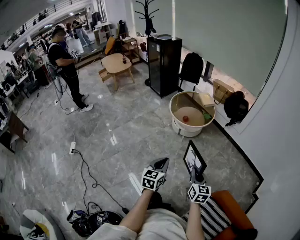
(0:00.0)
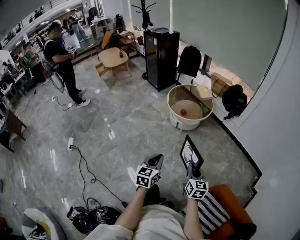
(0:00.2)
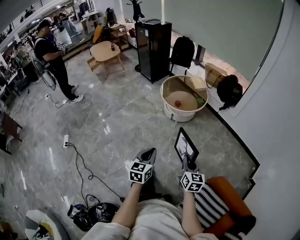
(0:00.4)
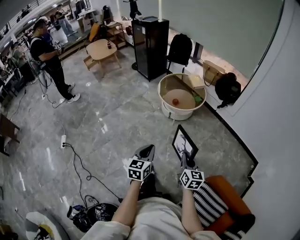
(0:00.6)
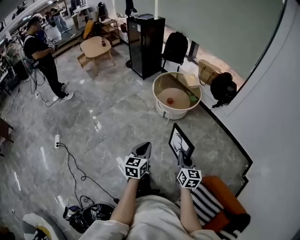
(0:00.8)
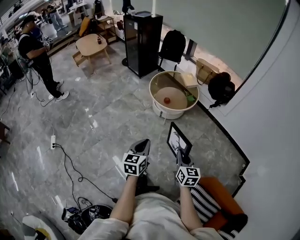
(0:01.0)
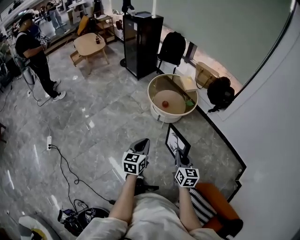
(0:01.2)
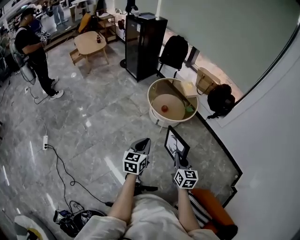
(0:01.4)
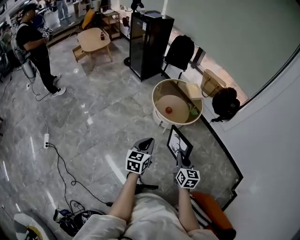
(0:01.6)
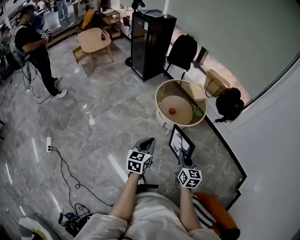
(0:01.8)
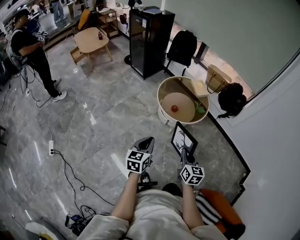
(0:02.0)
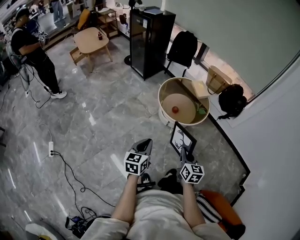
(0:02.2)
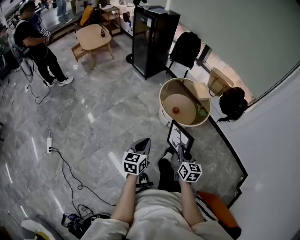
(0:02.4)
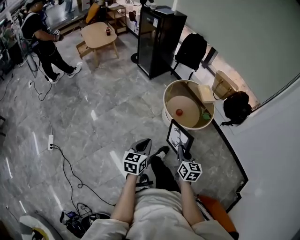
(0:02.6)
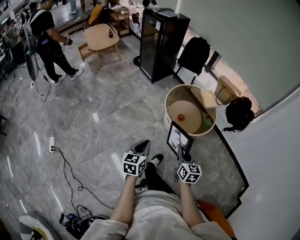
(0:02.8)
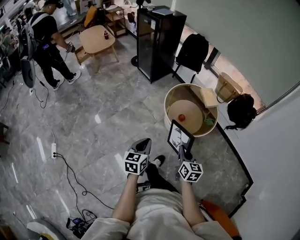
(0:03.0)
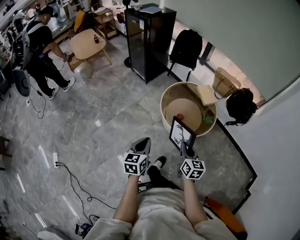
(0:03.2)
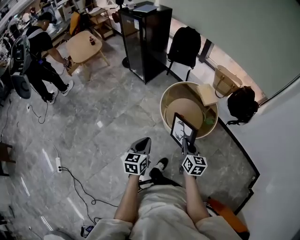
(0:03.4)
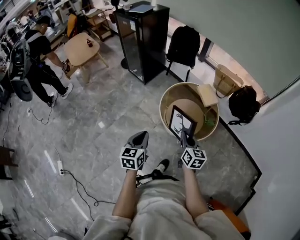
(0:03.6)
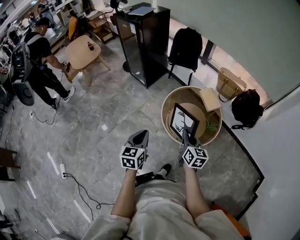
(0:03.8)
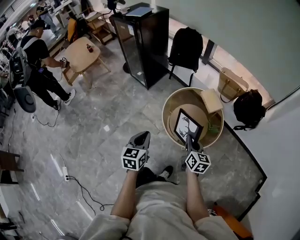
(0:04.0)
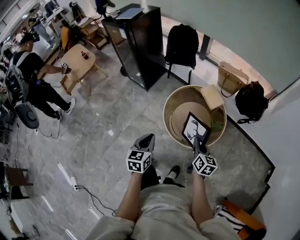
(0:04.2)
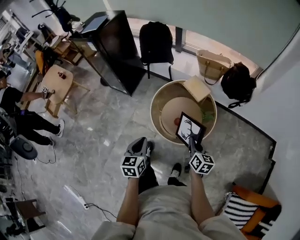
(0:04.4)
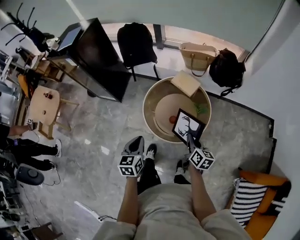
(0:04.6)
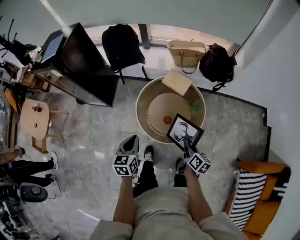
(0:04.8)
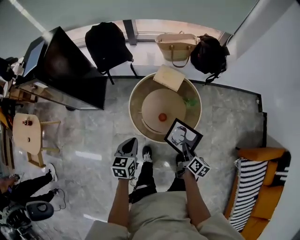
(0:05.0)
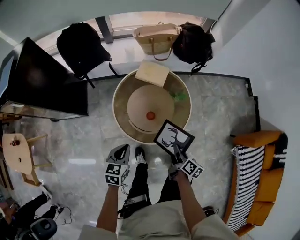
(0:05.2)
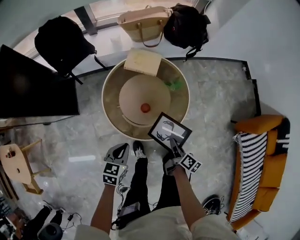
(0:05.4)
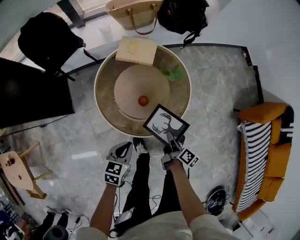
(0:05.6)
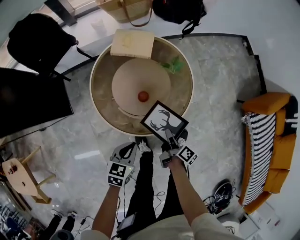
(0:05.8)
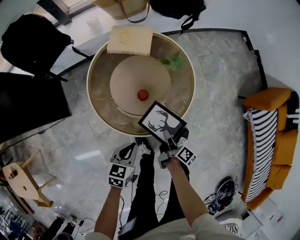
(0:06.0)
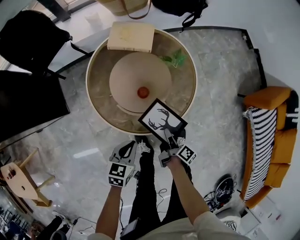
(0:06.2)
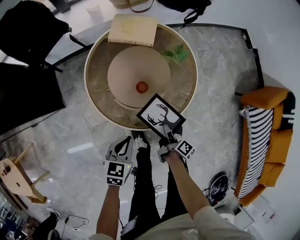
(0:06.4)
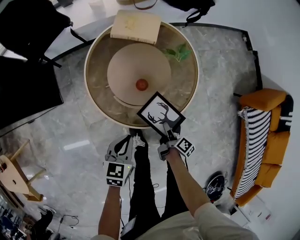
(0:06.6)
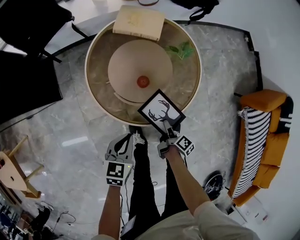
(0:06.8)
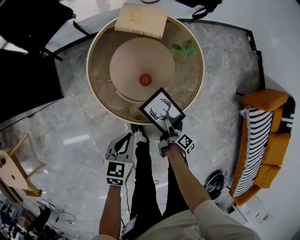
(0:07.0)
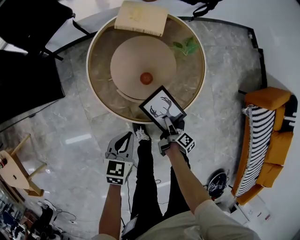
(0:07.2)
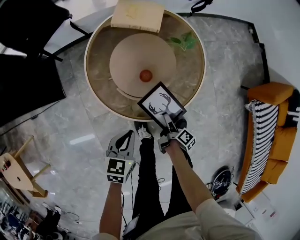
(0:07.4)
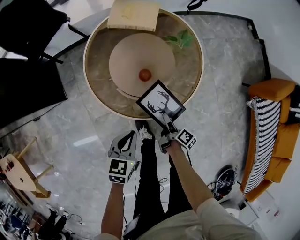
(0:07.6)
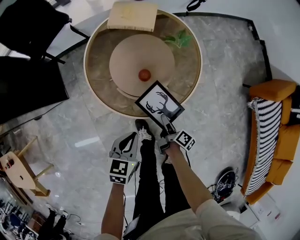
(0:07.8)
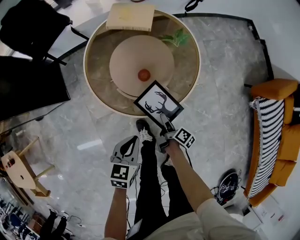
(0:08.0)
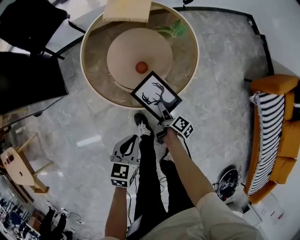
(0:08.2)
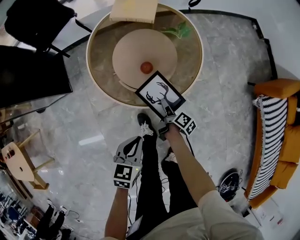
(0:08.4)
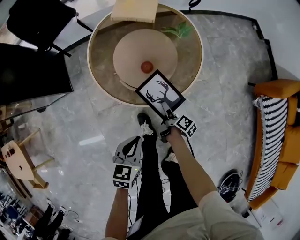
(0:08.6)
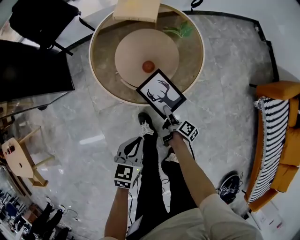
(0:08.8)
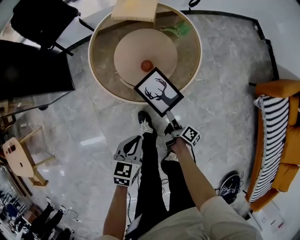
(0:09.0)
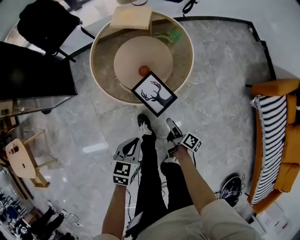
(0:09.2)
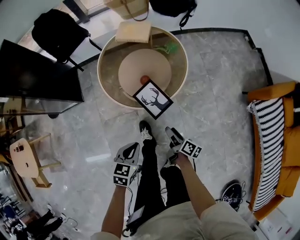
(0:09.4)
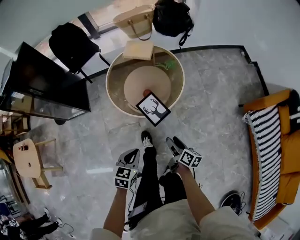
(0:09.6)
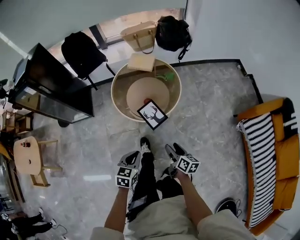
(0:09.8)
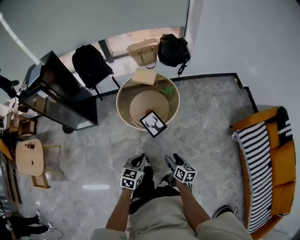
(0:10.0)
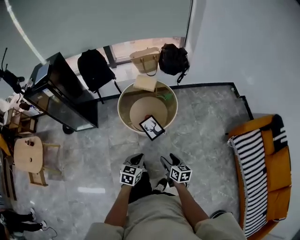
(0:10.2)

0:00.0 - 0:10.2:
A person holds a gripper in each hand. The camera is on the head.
0:00.0 - 0:01.4: The two grippers go about 20 cm forward.
0:01.4 - 0:03.0: The grippers both shift forward and to the left by about 30 cm.
0:03.0 - 0:04.4: The two grippers go roughly 30 cm forward. The right gripper changes its angle by roughly 30 degrees.
0:04.4 - 0:05.8: The grippers both shift downward by approximately 30 cm. The left gripper turns by some 70 degrees. The right gripper twists approximately 60 degrees clockwise, seen from behind.
0:05.8 - 0:07.2: The right gripper moves downward, some 10 cm, and opens its fingers, while the left gripper ends up approximately 5 cm from where it was.
0:07.2 - 0:08.8: The left gripper is displaced backward and to the right by some 15 cm.
0:08.8 - 0:10.2: Both grippers travel together upward and backward, roughly 40 cm. The right gripper rotates around the line of its fingers by about 60 degrees, counterclockwise from behind.

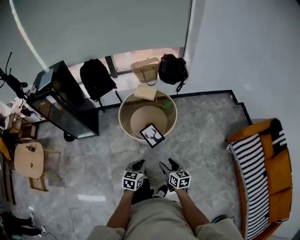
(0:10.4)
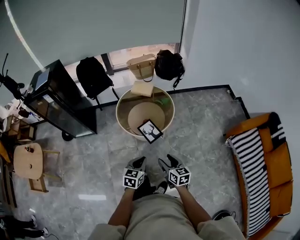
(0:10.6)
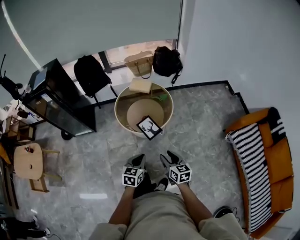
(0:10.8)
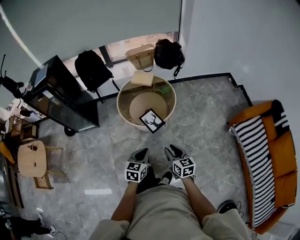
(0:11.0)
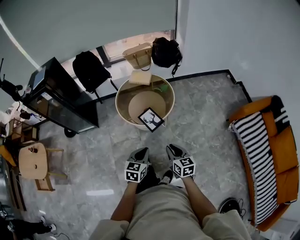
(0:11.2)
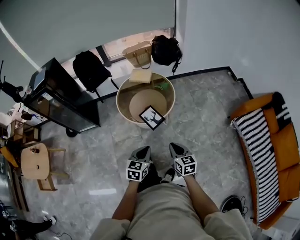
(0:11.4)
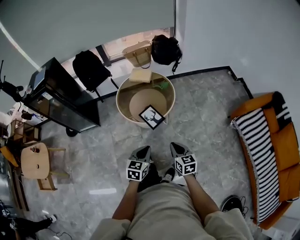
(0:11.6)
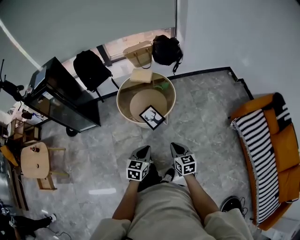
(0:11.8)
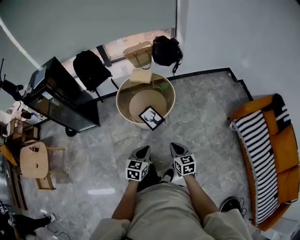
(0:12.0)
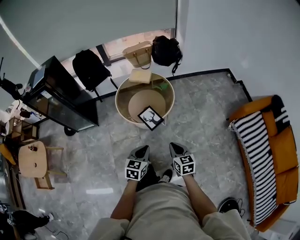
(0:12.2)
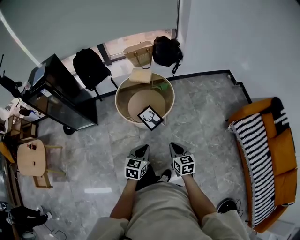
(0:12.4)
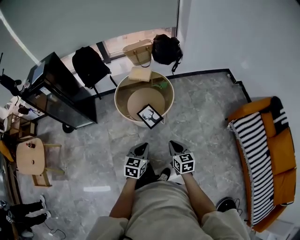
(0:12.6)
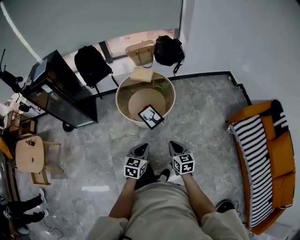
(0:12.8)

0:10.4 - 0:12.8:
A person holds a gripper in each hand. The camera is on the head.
0:10.4 - 0:11.6: The right gripper closes.
0:11.6 - 0:12.8: There are only small adjustments of the grippers.

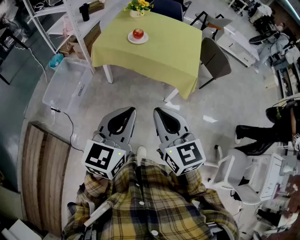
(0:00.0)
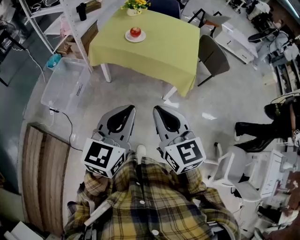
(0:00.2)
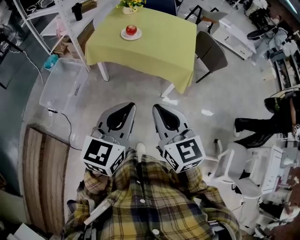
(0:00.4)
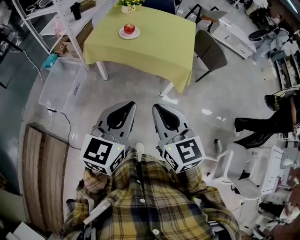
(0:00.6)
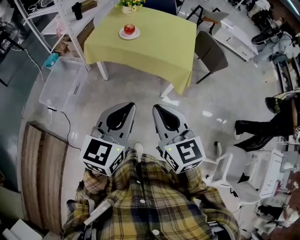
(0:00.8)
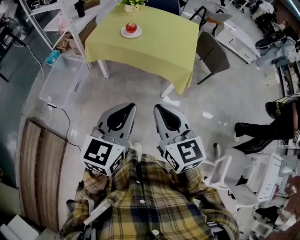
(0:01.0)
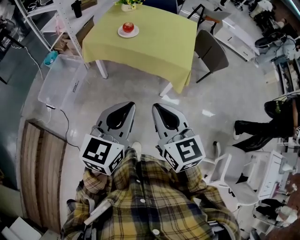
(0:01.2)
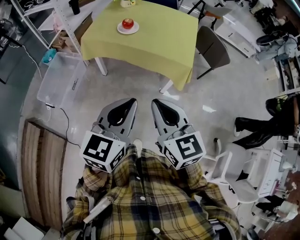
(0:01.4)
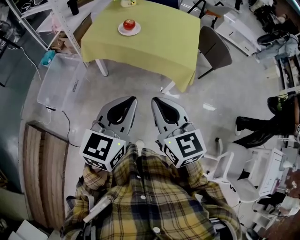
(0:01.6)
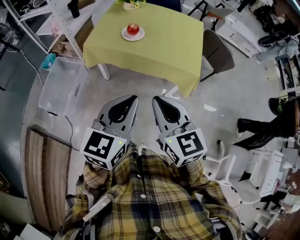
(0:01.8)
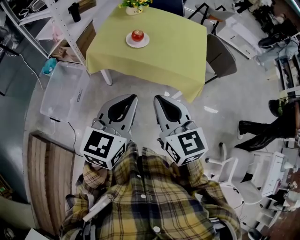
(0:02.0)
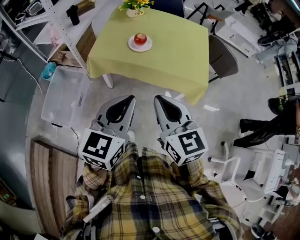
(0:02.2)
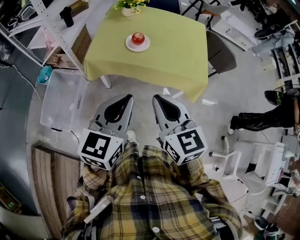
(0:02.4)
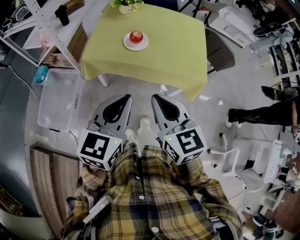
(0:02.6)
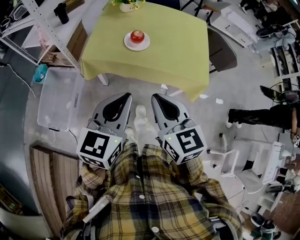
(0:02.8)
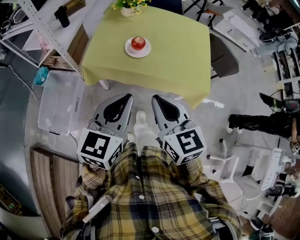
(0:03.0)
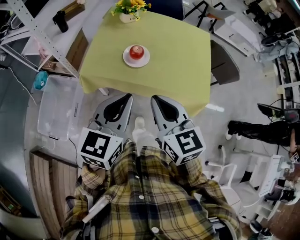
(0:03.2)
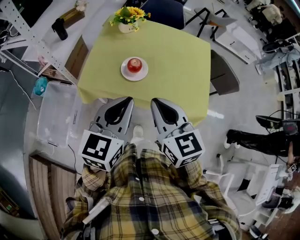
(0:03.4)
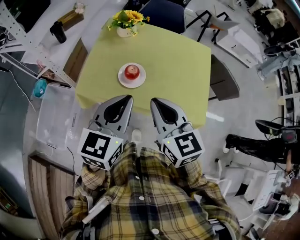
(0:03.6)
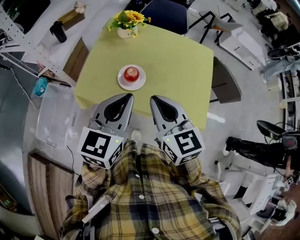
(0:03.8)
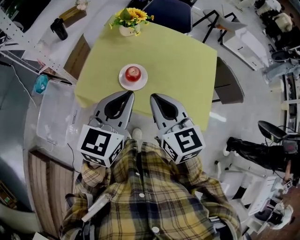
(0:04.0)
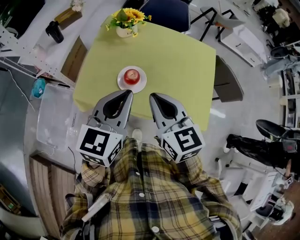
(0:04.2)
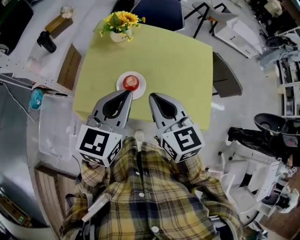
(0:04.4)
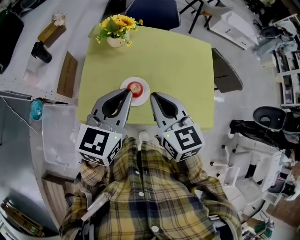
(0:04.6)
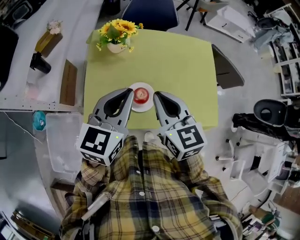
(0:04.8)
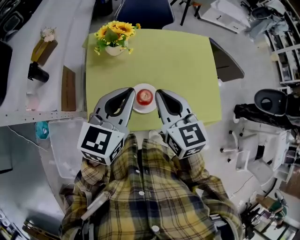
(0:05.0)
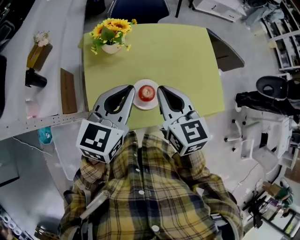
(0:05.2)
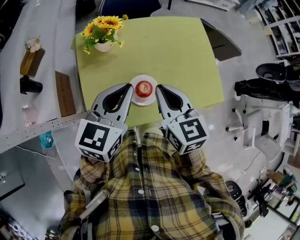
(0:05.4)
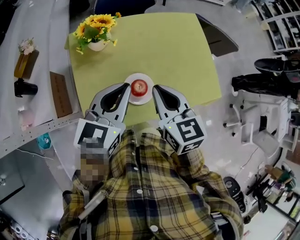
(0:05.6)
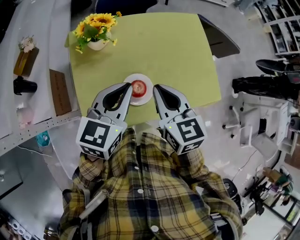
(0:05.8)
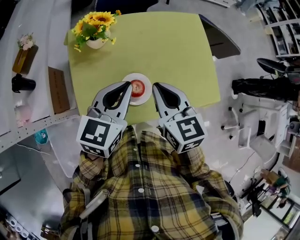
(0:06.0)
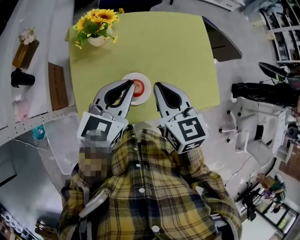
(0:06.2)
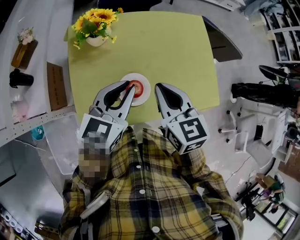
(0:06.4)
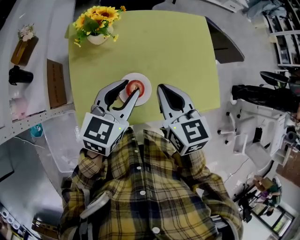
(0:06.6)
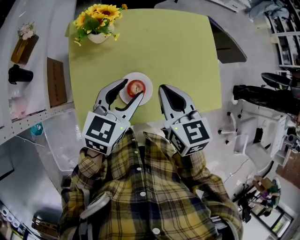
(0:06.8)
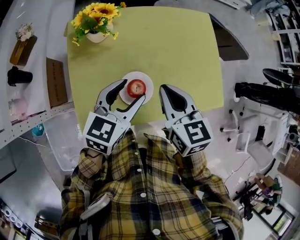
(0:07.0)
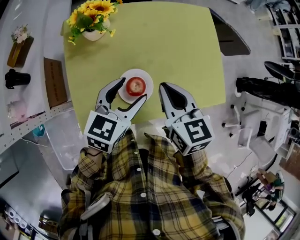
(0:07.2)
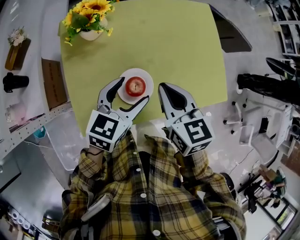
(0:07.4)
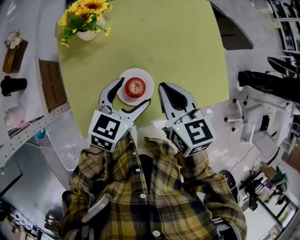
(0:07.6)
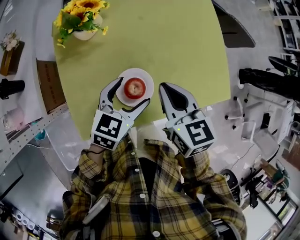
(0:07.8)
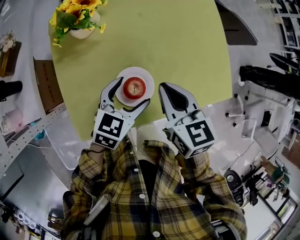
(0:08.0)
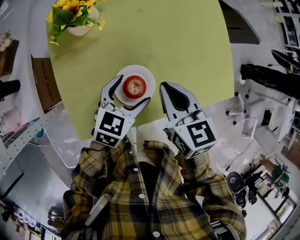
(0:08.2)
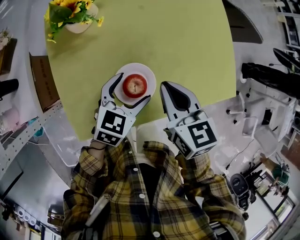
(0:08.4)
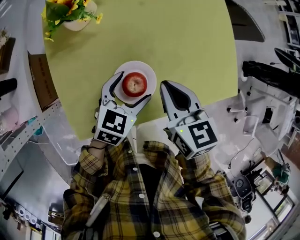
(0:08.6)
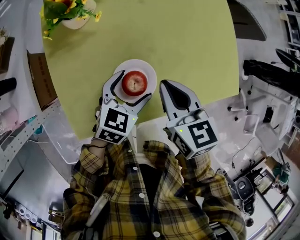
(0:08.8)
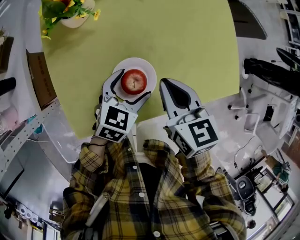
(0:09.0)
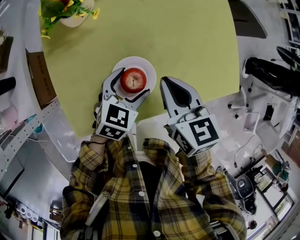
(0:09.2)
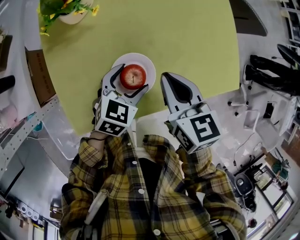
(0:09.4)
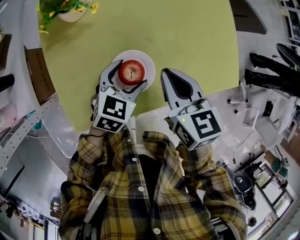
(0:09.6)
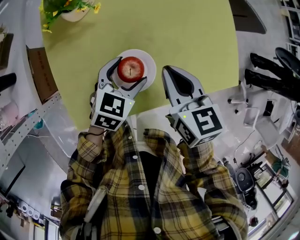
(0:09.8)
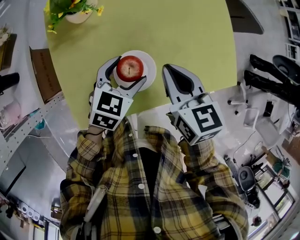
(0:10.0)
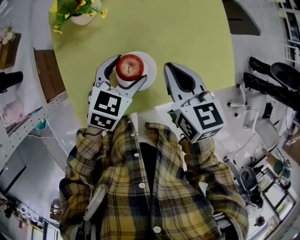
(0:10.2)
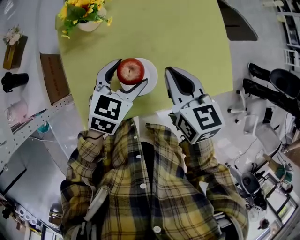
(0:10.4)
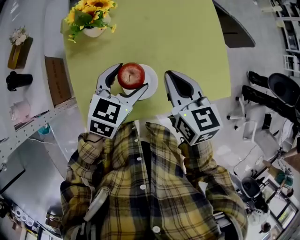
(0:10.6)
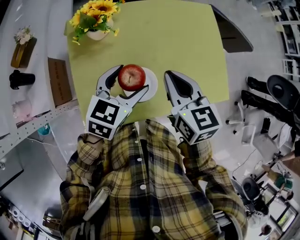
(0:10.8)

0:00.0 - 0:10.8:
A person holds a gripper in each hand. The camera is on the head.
0:00.0 - 0:01.6: The grippers both shift forward by roughly 5 cm.
0:01.6 - 0:03.0: The two grippers go roughly 20 cm forward and to the left.
0:03.0 - 0:04.6: The two grippers go about 25 cm forward.
0:04.6 - 0:06.2: The left gripper shifts about 5 cm forward, and changes its angle by about 20 degrees. The right gripper moves approximately 5 cm.
0:06.2 - 0:07.8: The right gripper travels downward by roughly 5 cm. The left gripper goes about 15 cm downward, and opens up.
0:07.8 - 0:09.2: The left gripper shifts approximately 10 cm downward.
0:09.2 - 0:10.8: The right gripper heads upward, covering some 10 cm. Meanwhile the left gripper goes some 15 cm upward.
